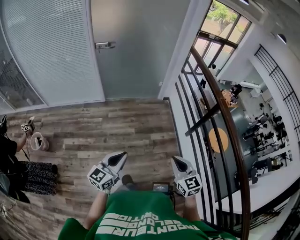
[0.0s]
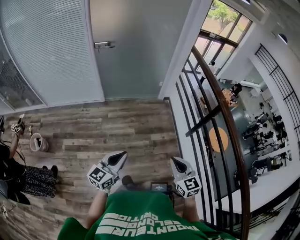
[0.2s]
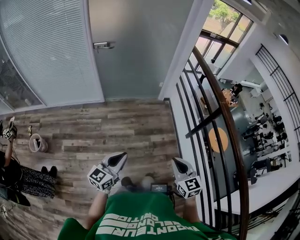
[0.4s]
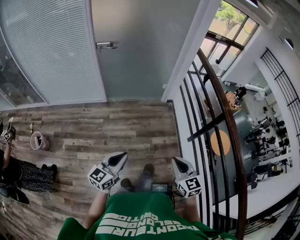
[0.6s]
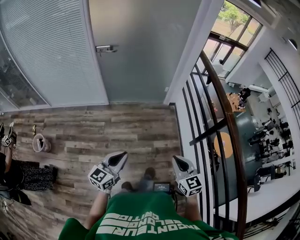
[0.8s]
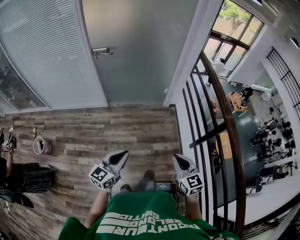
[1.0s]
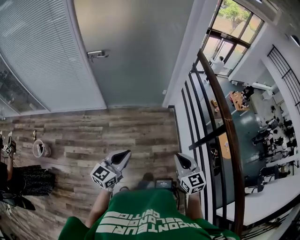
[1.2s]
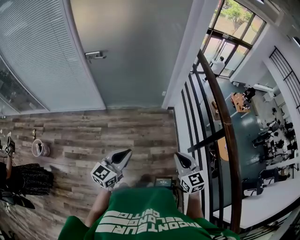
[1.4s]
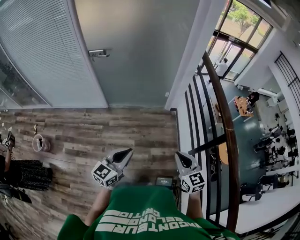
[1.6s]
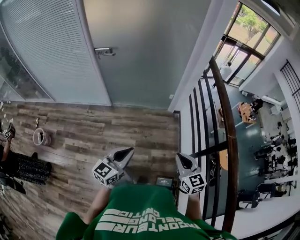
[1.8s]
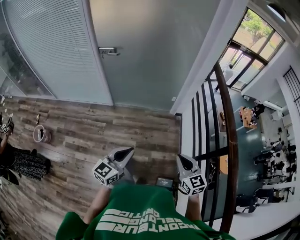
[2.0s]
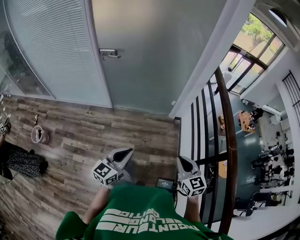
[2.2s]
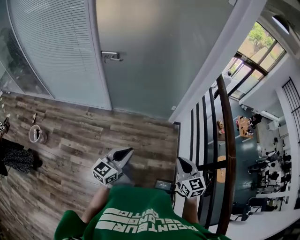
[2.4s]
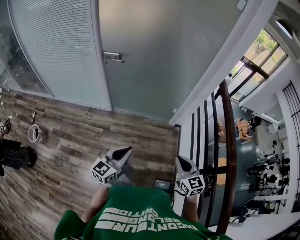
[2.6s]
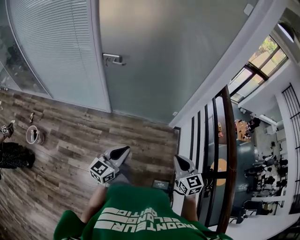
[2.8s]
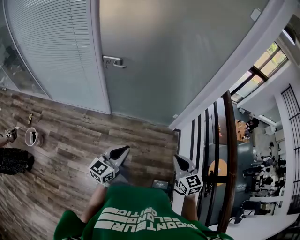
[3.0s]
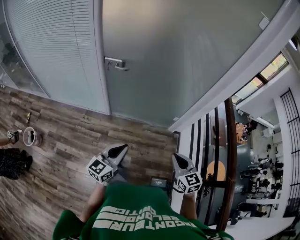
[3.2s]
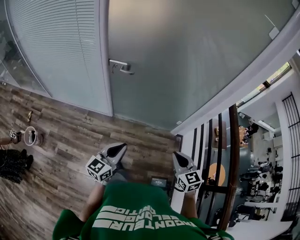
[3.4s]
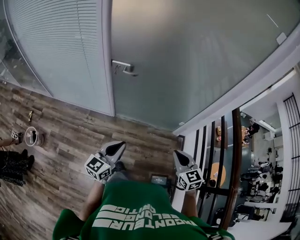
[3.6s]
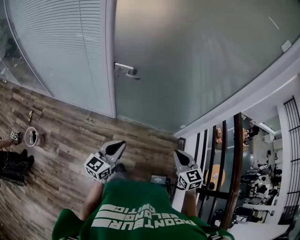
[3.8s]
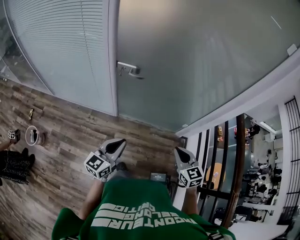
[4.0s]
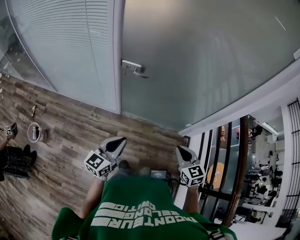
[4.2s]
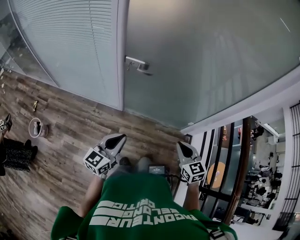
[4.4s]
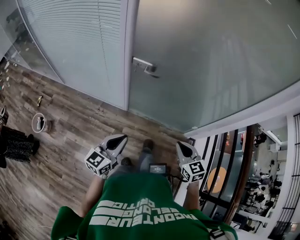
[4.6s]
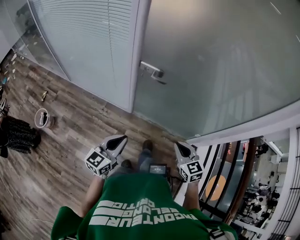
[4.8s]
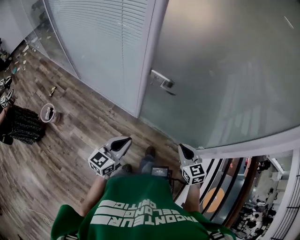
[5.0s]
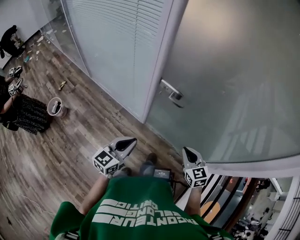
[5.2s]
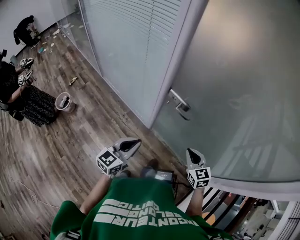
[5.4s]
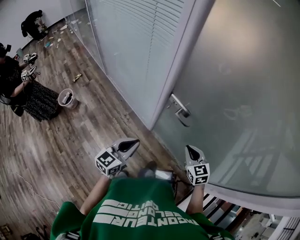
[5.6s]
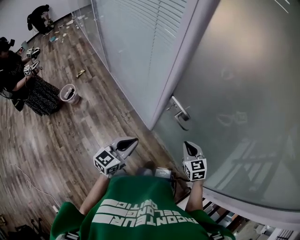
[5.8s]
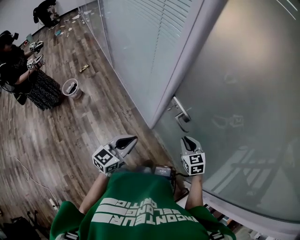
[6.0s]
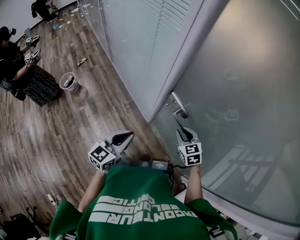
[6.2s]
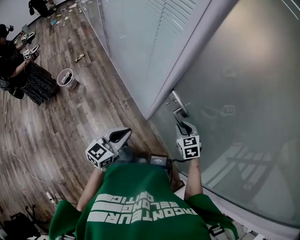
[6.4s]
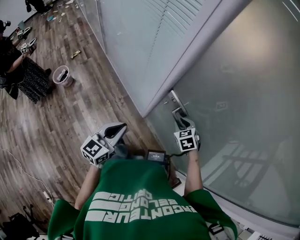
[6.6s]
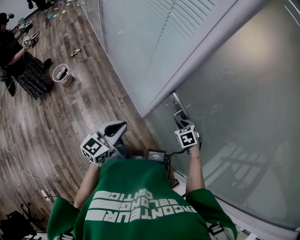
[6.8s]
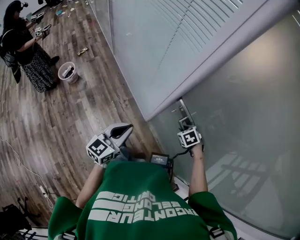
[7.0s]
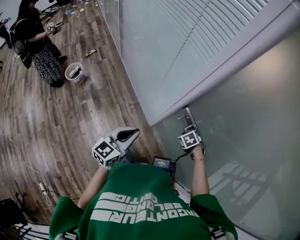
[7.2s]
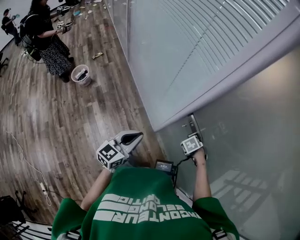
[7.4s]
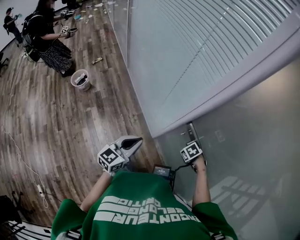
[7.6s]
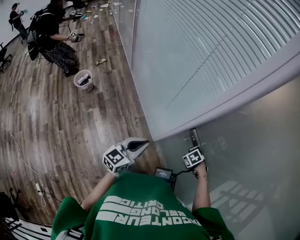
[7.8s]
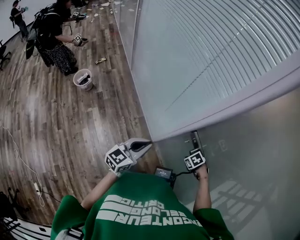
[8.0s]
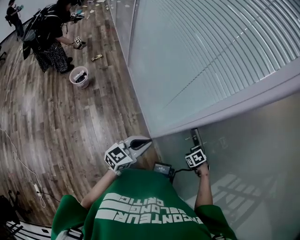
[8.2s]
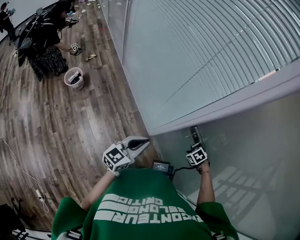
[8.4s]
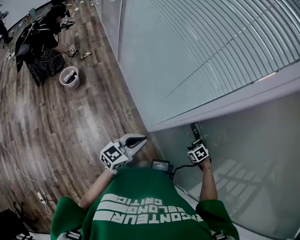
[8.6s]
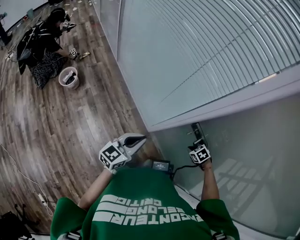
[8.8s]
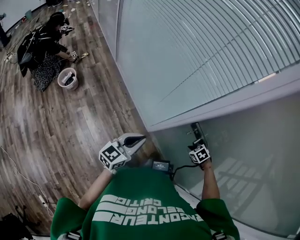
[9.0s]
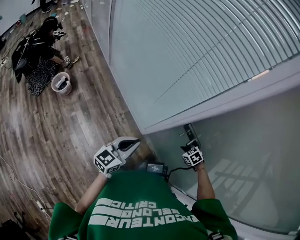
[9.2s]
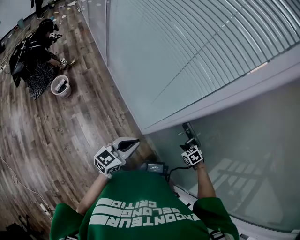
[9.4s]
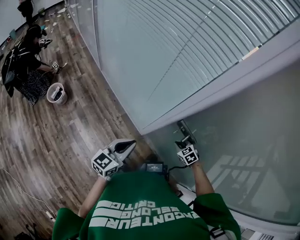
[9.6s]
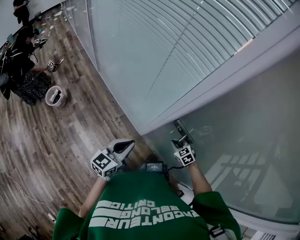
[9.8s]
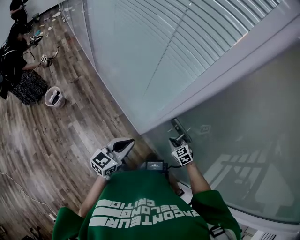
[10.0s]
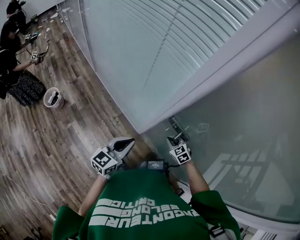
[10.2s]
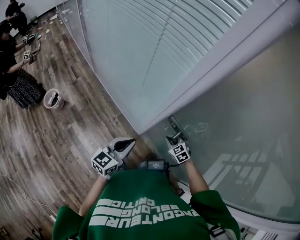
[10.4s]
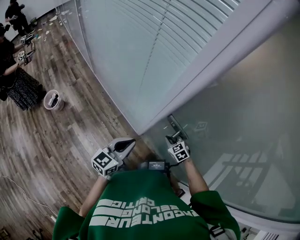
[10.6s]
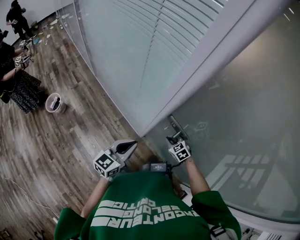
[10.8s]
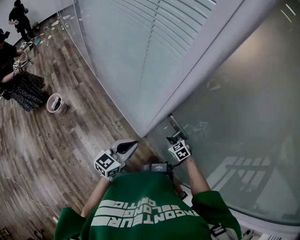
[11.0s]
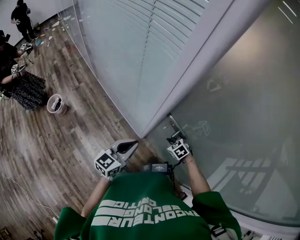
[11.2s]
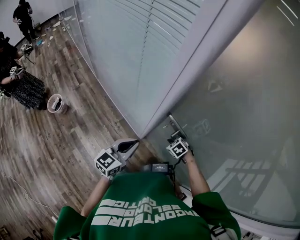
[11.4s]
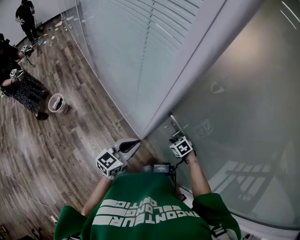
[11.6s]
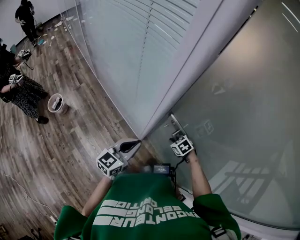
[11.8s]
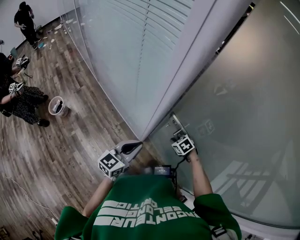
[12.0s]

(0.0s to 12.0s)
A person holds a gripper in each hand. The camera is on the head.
0.0s - 1.6s: The two grippers go roughly 25 cm forward.
1.6s - 3.0s: Both grippers move forward and to the left, about 20 cm.
3.0s - 4.4s: The right gripper moves forward and to the left, about 25 cm, while the left gripper goes approximately 20 cm to the left and forward.
4.4s - 6.0s: The right gripper moves roughly 40 cm, and swivels some 40 degrees. Meanwhile the left gripper shifts by roughly 20 cm, and changes its angle by approximately 30 degrees.
6.0s - 7.6s: The left gripper shifts by some 10 cm. The right gripper heads downward, covering roughly 15 cm, and tilts its fingers about 50 degrees downward.
7.6s - 9.0s: The grippers move only a little.
9.0s - 10.4s: The right gripper ends up about 5 cm from where it was, and swivels about 30 degrees; the left gripper shifts by approximately 10 cm.
10.4s - 12.0s: The right gripper moves roughly 5 cm. The left gripper heads to the right, covering roughly 5 cm.

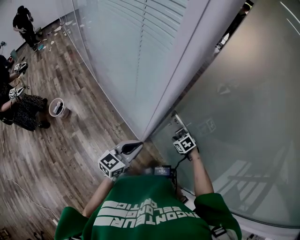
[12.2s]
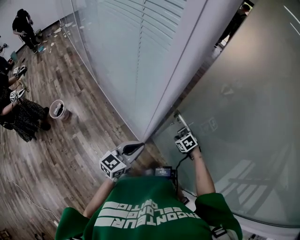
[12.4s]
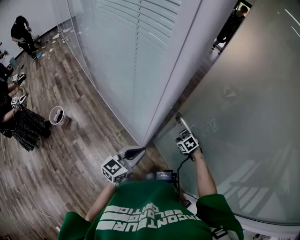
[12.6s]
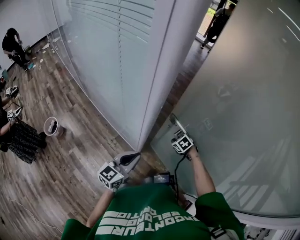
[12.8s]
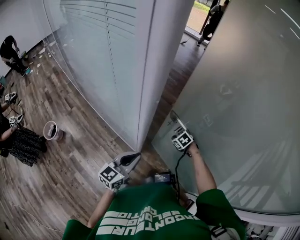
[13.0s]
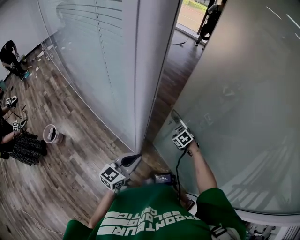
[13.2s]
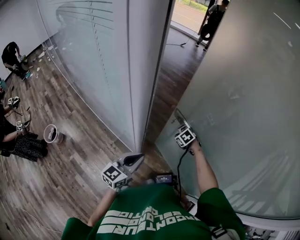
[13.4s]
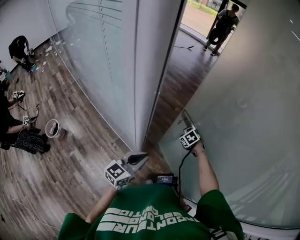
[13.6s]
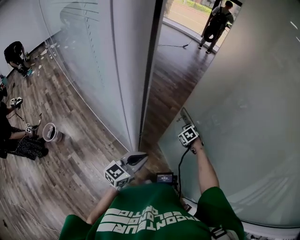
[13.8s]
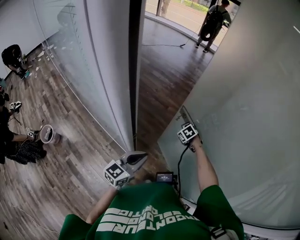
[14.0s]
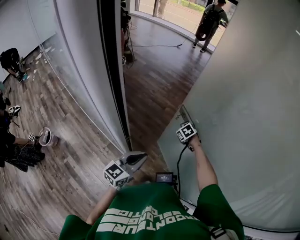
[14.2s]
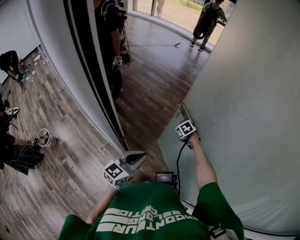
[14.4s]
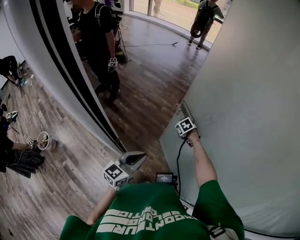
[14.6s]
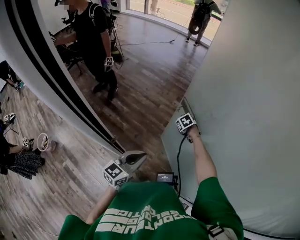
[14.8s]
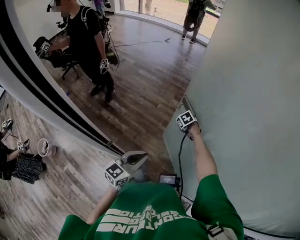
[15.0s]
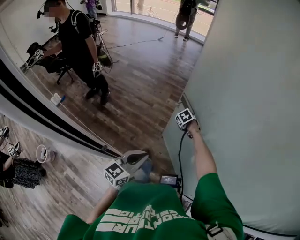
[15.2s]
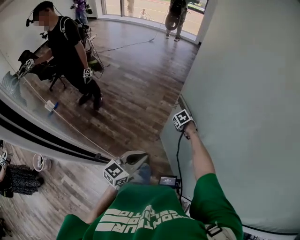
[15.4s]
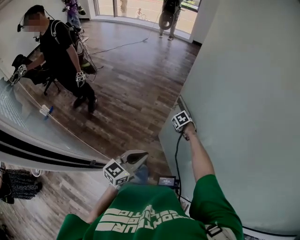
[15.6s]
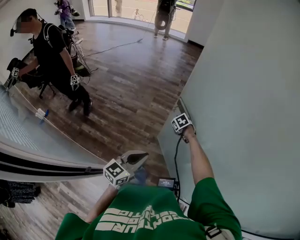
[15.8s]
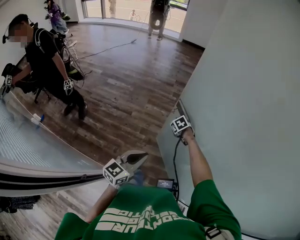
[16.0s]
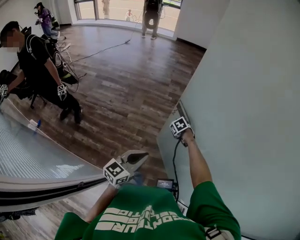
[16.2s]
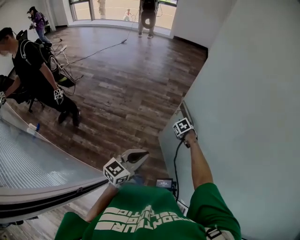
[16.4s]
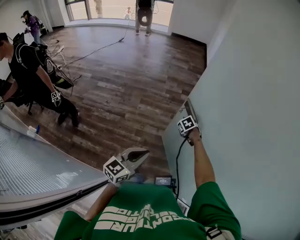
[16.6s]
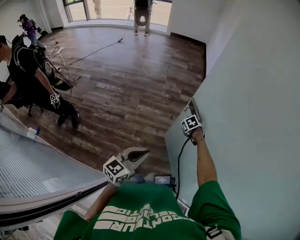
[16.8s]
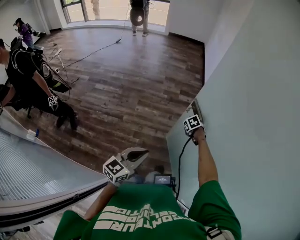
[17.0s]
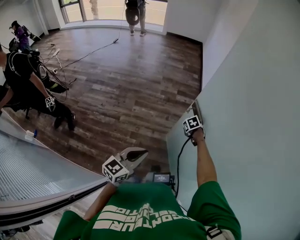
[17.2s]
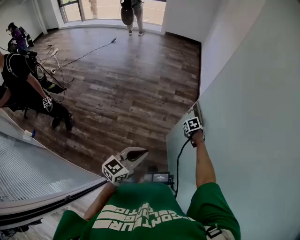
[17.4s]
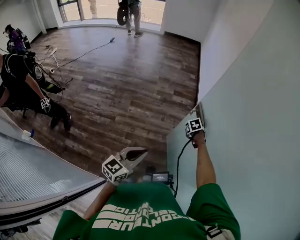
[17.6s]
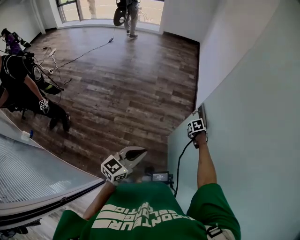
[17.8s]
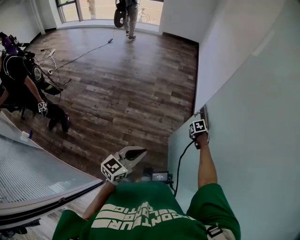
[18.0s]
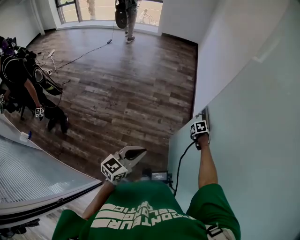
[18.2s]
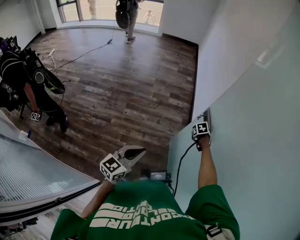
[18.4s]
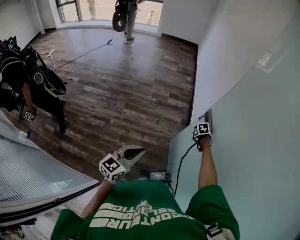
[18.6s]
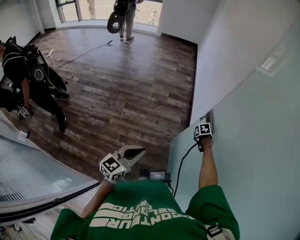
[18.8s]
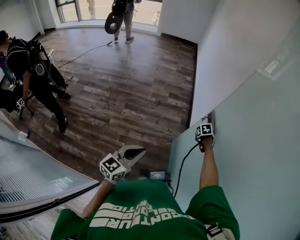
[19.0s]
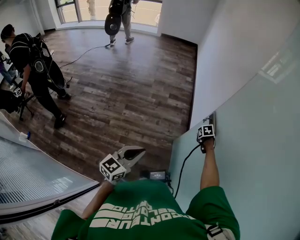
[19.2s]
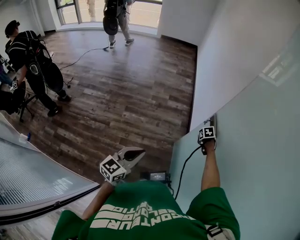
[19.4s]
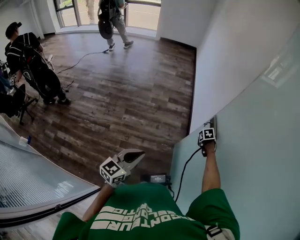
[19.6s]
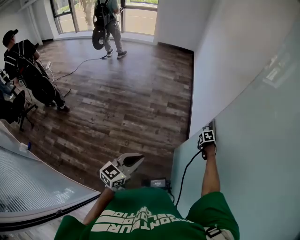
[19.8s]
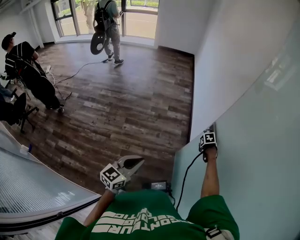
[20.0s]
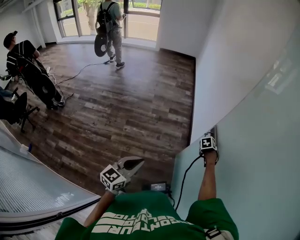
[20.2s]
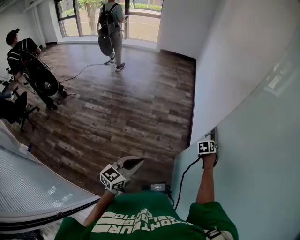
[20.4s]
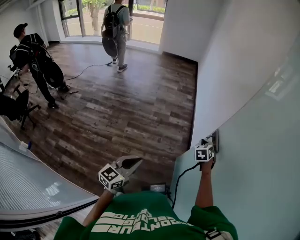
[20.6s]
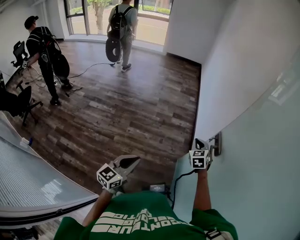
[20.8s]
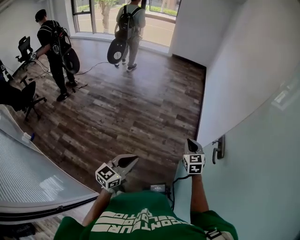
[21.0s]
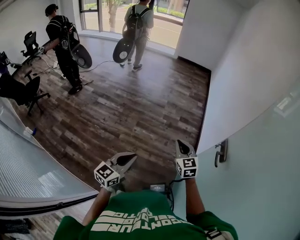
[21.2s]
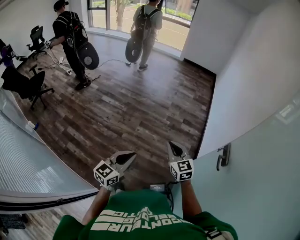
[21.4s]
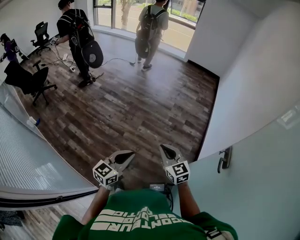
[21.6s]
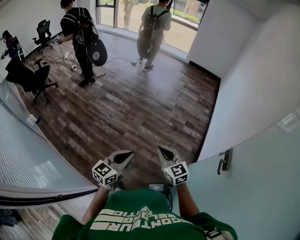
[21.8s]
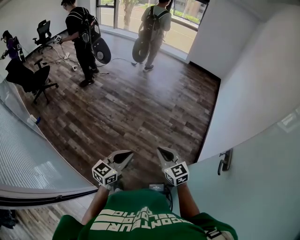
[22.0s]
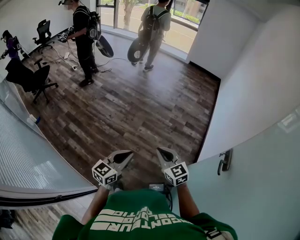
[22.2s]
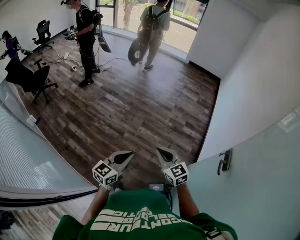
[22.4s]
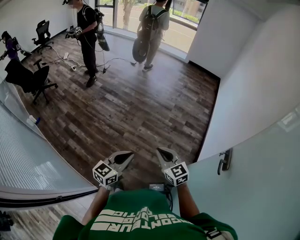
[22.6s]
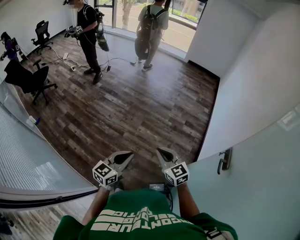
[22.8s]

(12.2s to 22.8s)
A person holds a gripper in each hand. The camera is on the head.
12.2s - 13.8s: The right gripper shifts roughly 20 cm forward and to the right, while the left gripper travels to the right and forward by some 10 cm.
13.8s - 15.2s: Both grippers move to the right and forward, some 20 cm.
15.2s - 16.8s: The left gripper goes roughly 25 cm forward and to the right; the right gripper moves to the right and forward, roughly 30 cm, and rotates about 20 degrees.
16.8s - 18.2s: The right gripper moves to the right and forward, about 20 cm; the left gripper travels forward and to the right by about 15 cm.
18.2s - 19.8s: The right gripper ends up about 10 cm from where it was. The left gripper shifts by some 5 cm.
19.8s - 21.2s: The right gripper moves some 40 cm, tips its fingers upward by some 50 degrees, and opens, then closes once more. Meanwhile the left gripper ends up about 15 cm from where it was.
21.2s - 22.8s: The left gripper heads to the left, covering about 5 cm, while the right gripper is displaced to the left by approximately 15 cm, and swivels about 30 degrees.

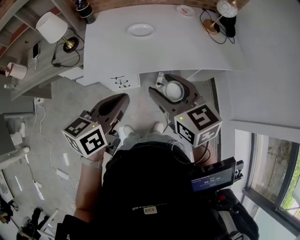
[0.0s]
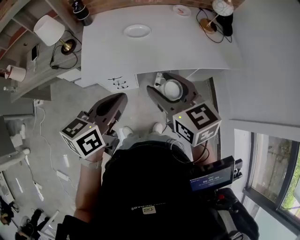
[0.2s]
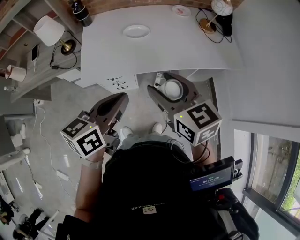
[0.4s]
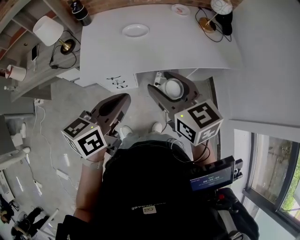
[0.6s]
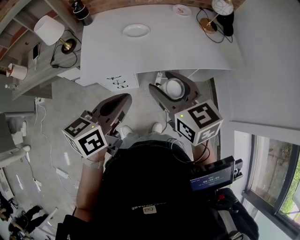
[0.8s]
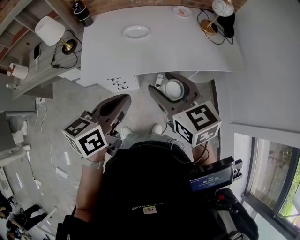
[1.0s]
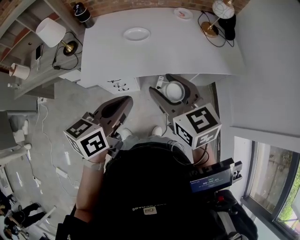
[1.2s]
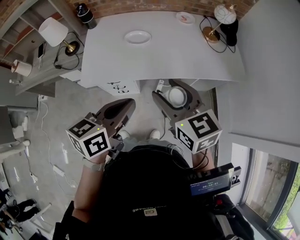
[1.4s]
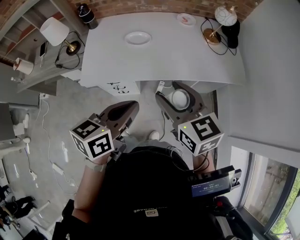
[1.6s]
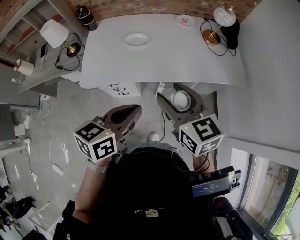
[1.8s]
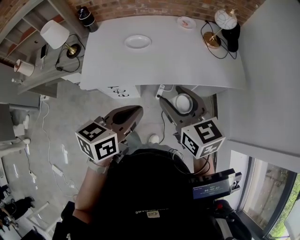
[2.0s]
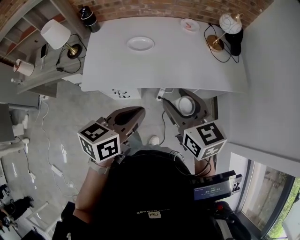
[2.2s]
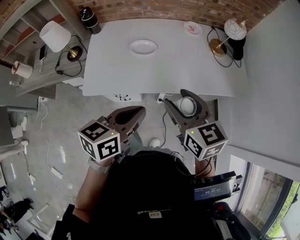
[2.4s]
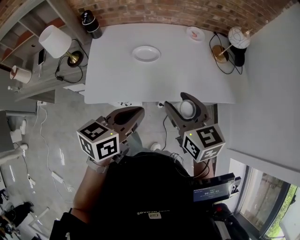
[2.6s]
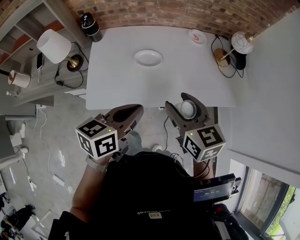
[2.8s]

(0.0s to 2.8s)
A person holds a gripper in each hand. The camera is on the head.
0.0s - 1.4s: Both grippers travel together to the right, about 10 cm.
1.4s - 2.8s: The left gripper goes approximately 15 cm forward and to the left, while the right gripper is displaced forward by approximately 15 cm.
